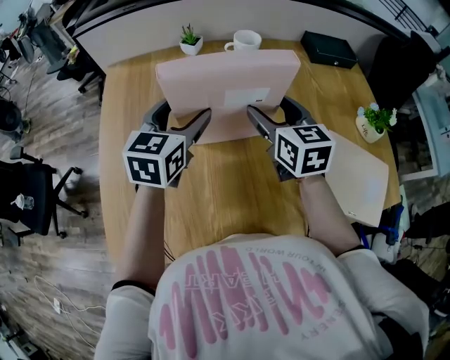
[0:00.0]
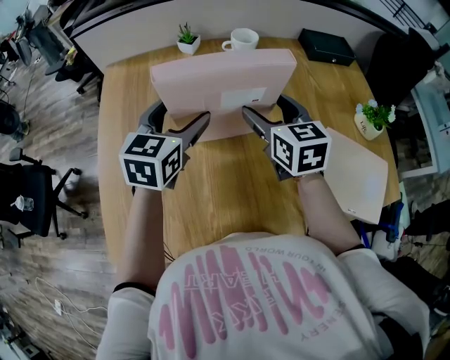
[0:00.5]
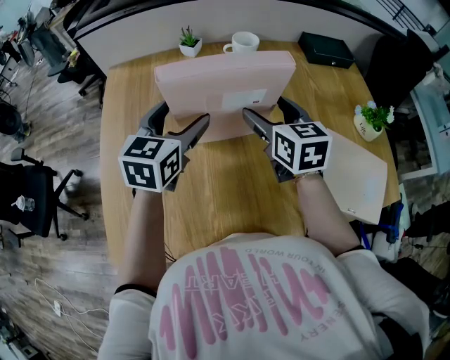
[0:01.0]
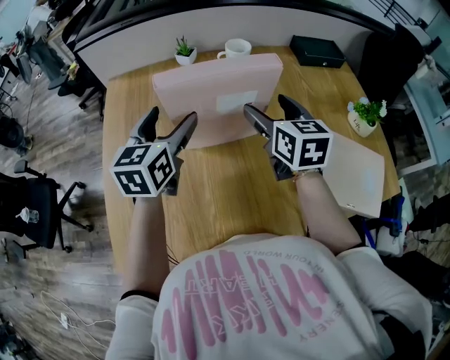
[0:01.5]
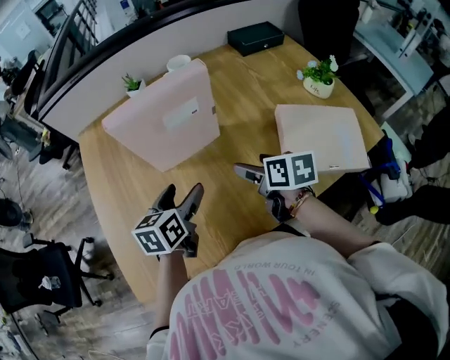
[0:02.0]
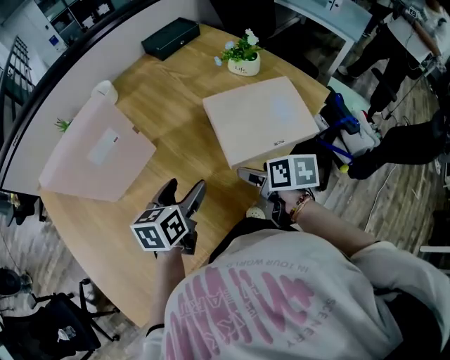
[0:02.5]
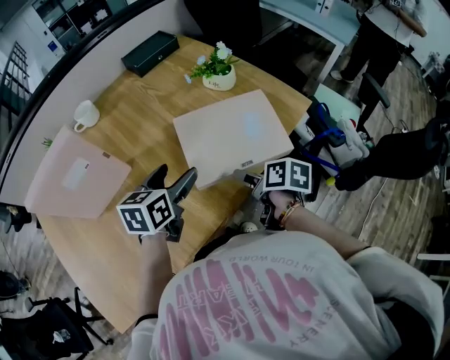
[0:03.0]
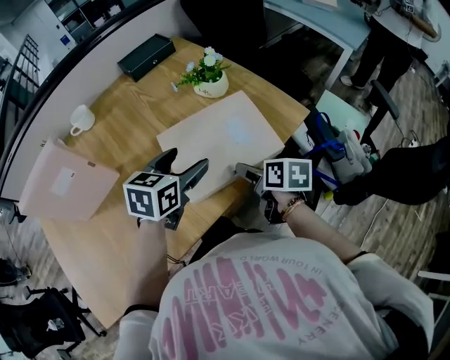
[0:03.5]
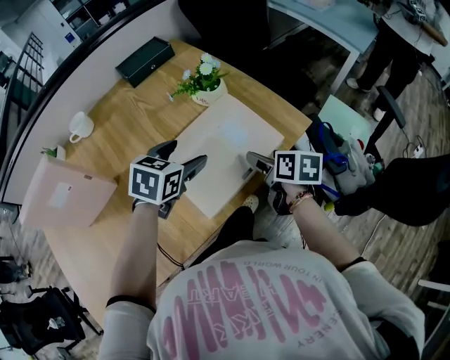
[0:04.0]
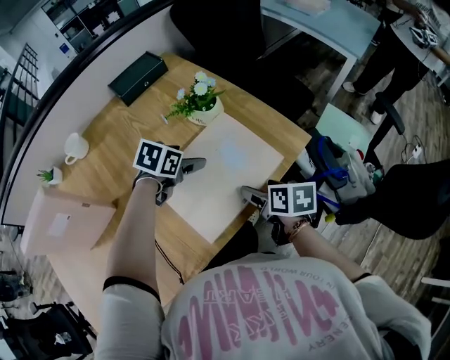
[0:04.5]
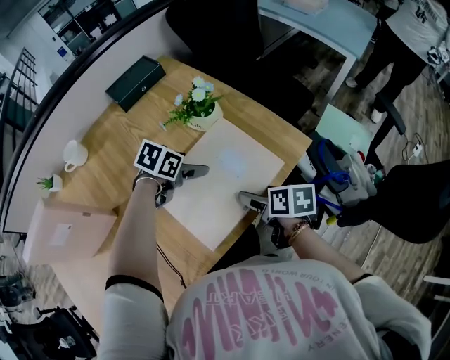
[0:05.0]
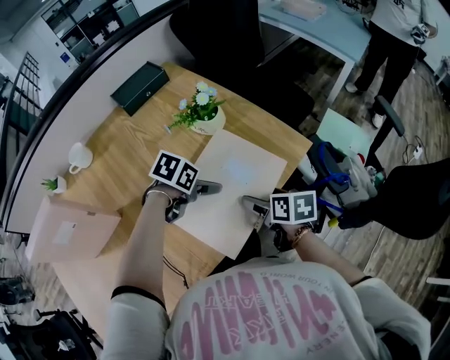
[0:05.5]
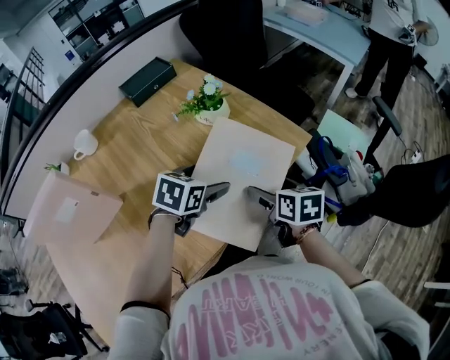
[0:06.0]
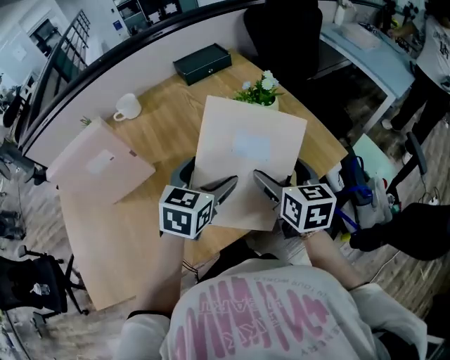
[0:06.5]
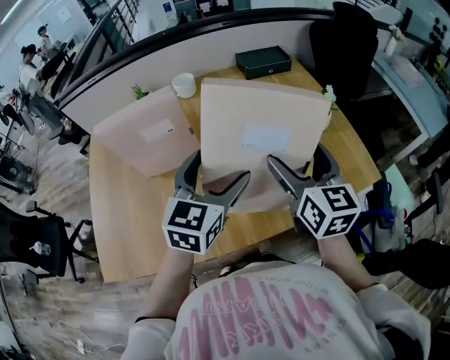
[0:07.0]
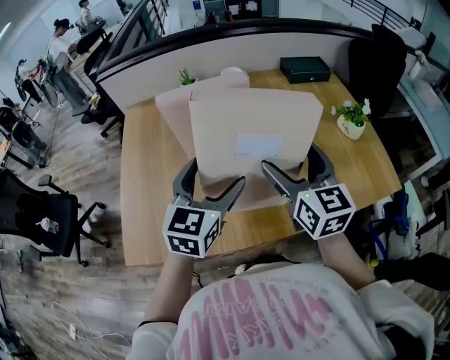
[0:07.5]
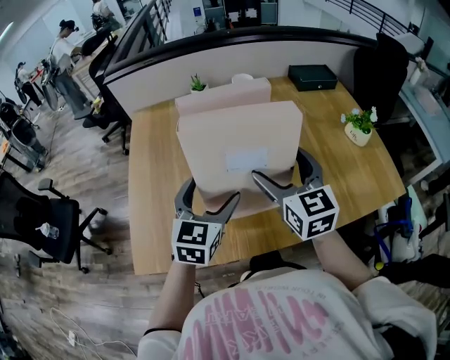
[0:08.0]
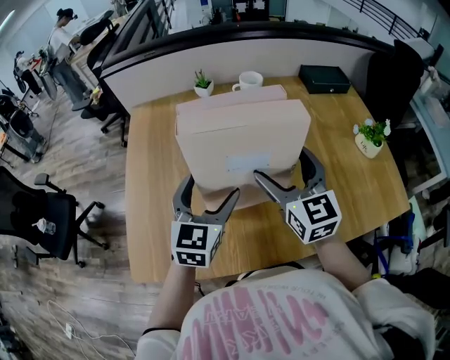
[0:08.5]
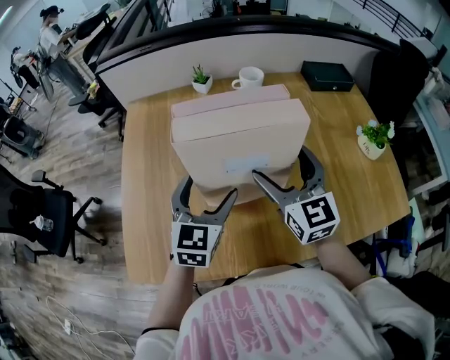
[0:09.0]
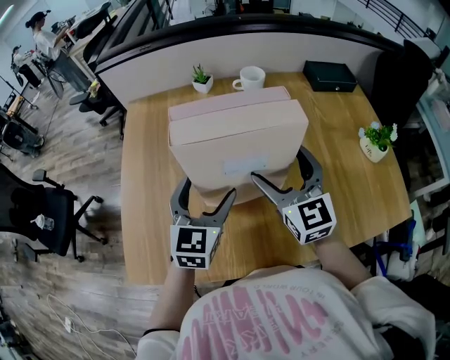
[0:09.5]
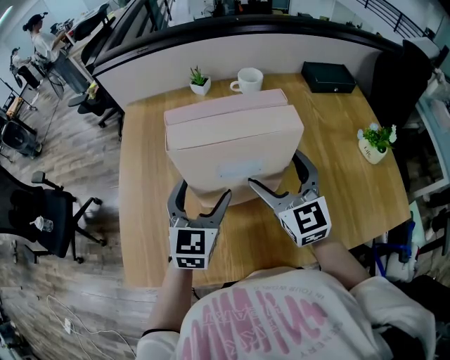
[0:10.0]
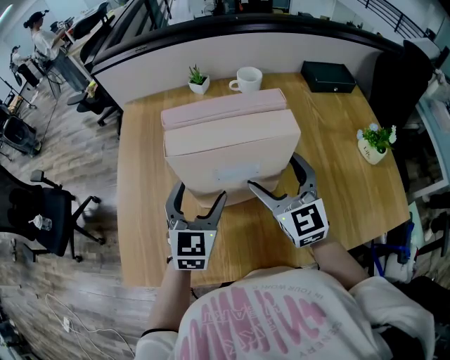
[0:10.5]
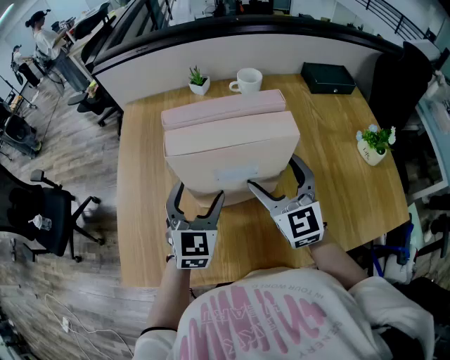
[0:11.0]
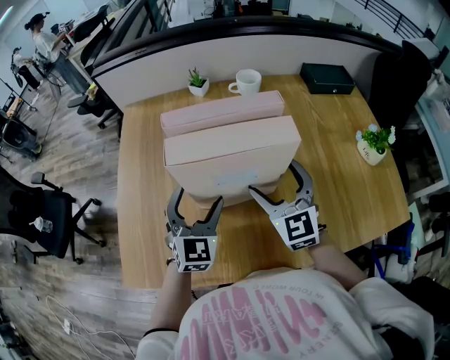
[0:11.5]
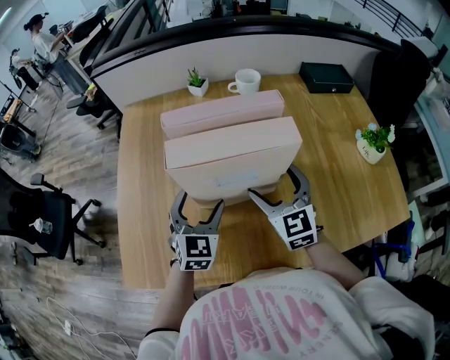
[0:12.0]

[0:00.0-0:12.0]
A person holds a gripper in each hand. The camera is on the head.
0:00.0 to 0:02.0: The left gripper moves backward and downward, approximately 15 cm, and swivels approximately 20 degrees. The right gripper goes approximately 20 cm backward, downward and to the right, and swivels about 40 degrees.
0:02.0 to 0:04.0: The pair of grippers is taken roughly 40 cm. The right gripper turns by approximately 30 degrees; the left gripper swivels approximately 50 degrees.
0:04.0 to 0:06.0: The left gripper travels forward and back again, roughly 10 cm each way.
0:06.0 to 0:08.0: The two grippers travel together, some 50 cm. The right gripper swivels approximately 60 degrees; the left gripper rotates approximately 60 degrees.
0:08.0 to 0:10.0: The two grippers go about 10 cm forward.
0:10.0 to 0:12.0: Both grippers move downward, roughly 5 cm.

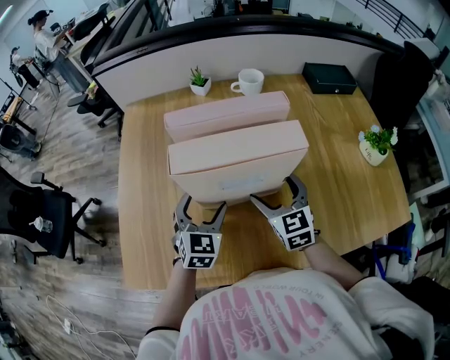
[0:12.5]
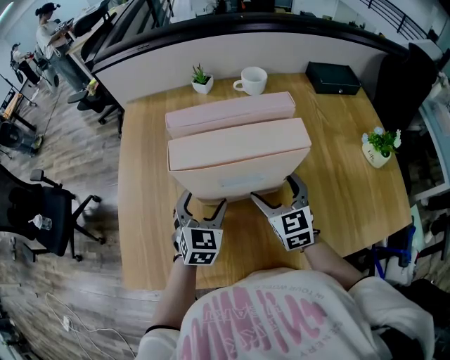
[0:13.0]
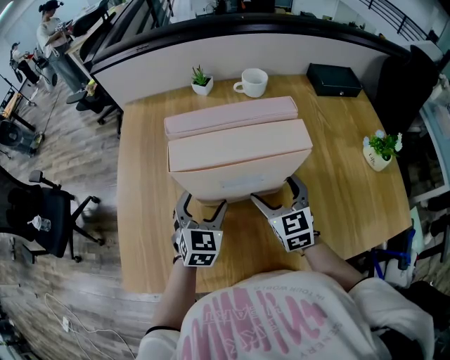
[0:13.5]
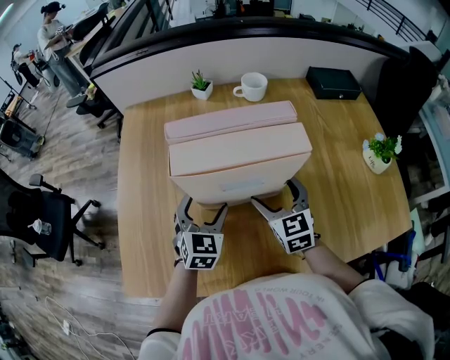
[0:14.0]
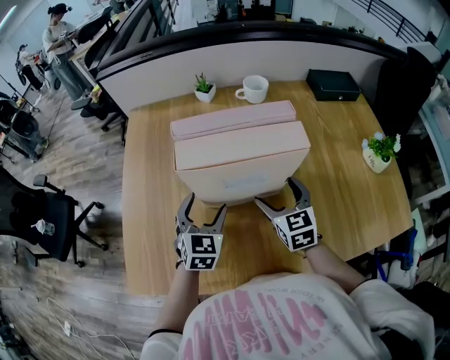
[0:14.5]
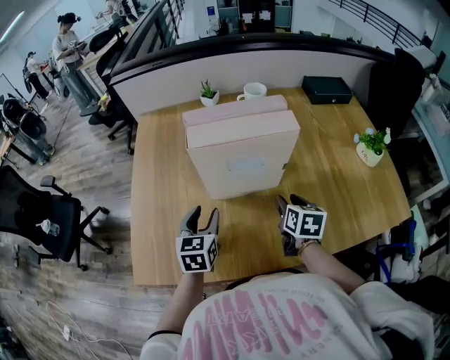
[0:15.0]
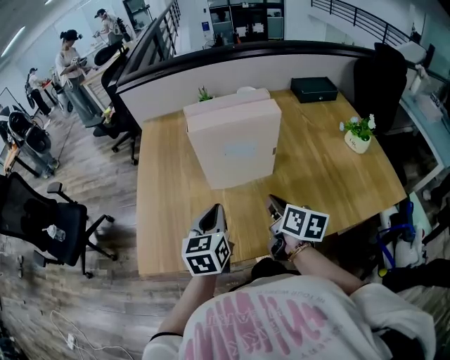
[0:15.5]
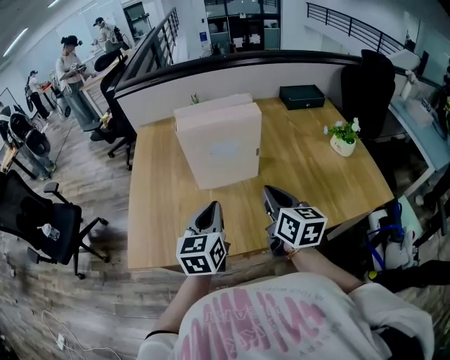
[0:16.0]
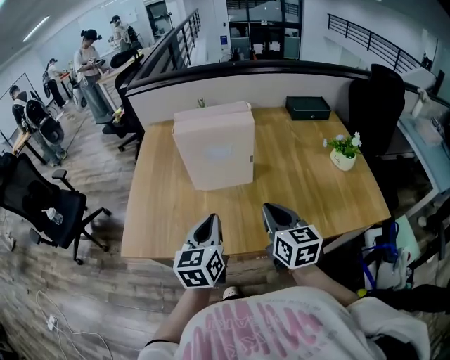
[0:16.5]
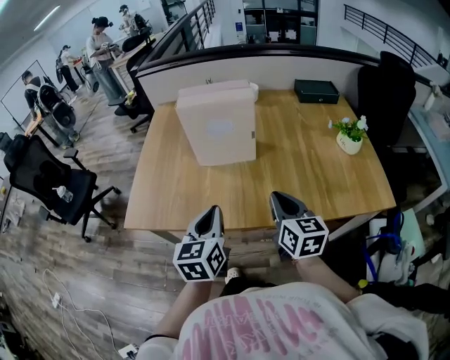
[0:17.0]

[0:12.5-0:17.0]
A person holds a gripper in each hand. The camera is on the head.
0:12.5 to 0:14.5: The grippers make only small movements.
0:14.5 to 0:17.0: The grippers both shift backward and upward by approximately 30 cm. The left gripper turns by about 30 degrees, and closes. The right gripper changes its angle by some 20 degrees, and closes its fingers.

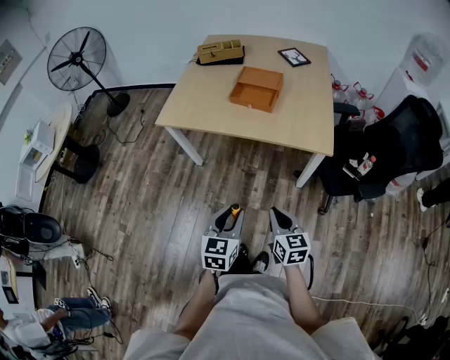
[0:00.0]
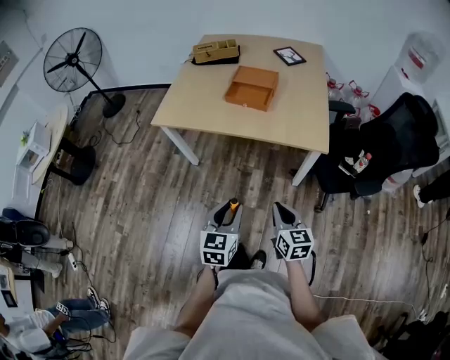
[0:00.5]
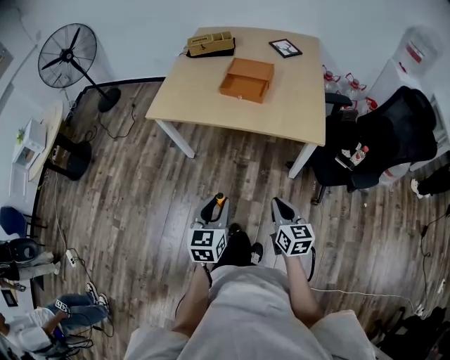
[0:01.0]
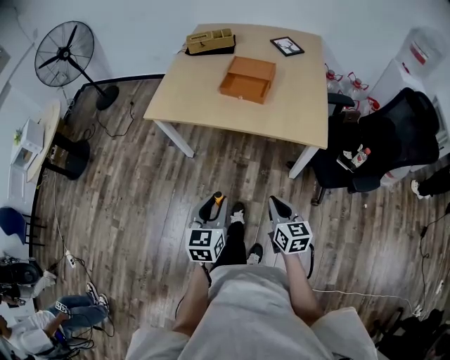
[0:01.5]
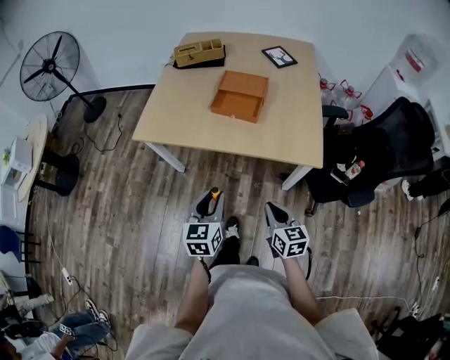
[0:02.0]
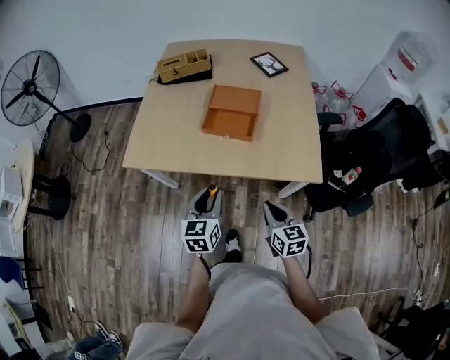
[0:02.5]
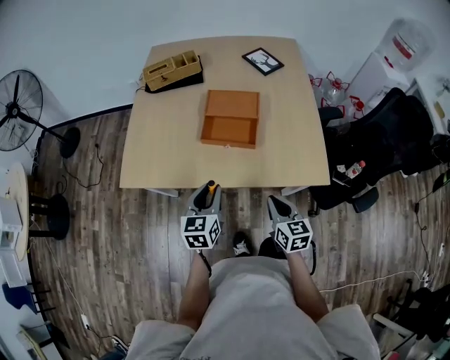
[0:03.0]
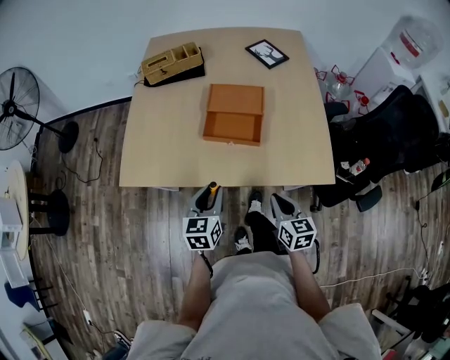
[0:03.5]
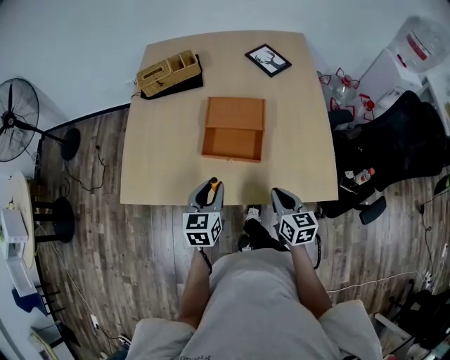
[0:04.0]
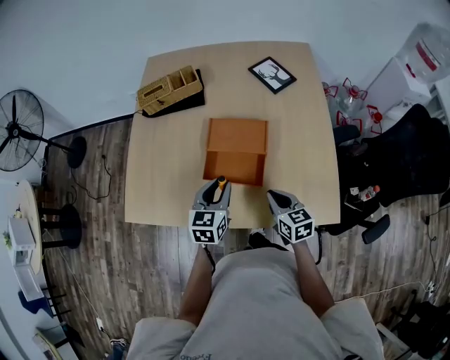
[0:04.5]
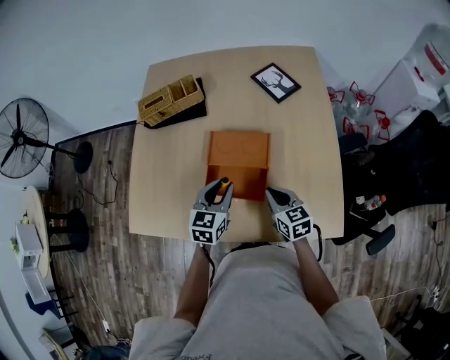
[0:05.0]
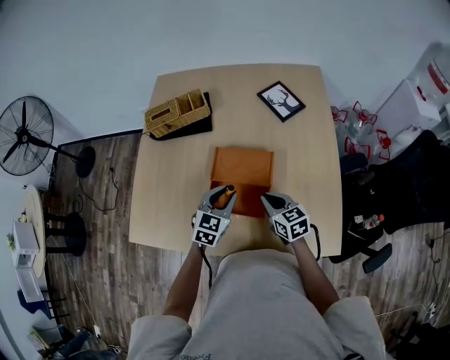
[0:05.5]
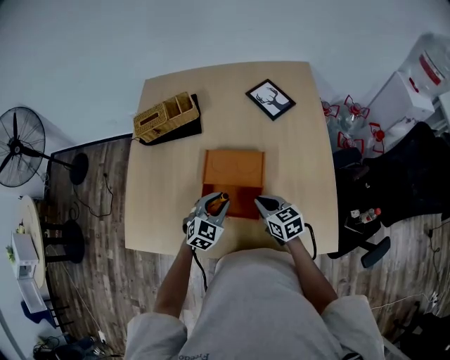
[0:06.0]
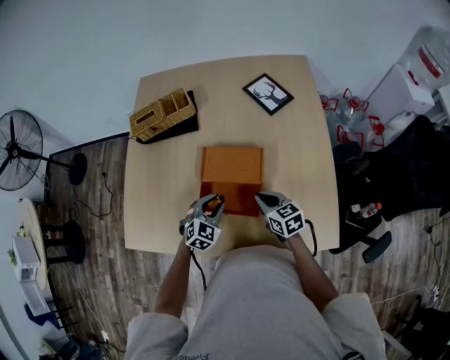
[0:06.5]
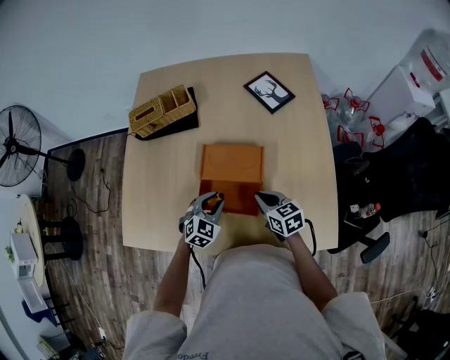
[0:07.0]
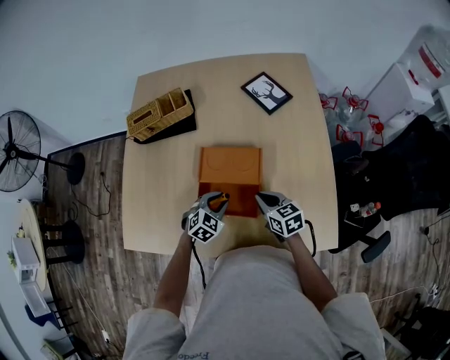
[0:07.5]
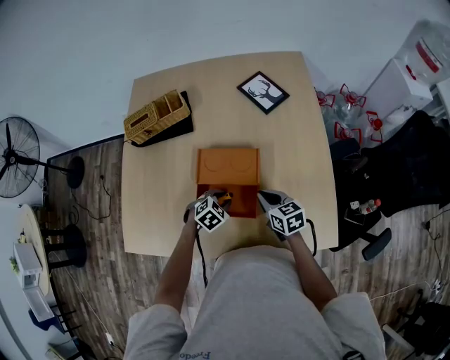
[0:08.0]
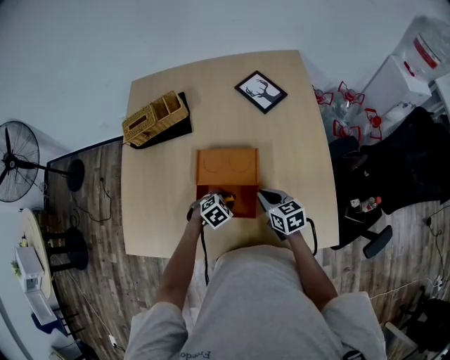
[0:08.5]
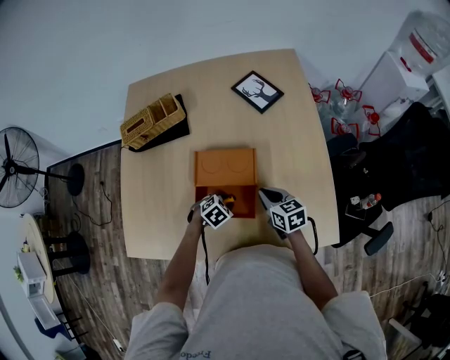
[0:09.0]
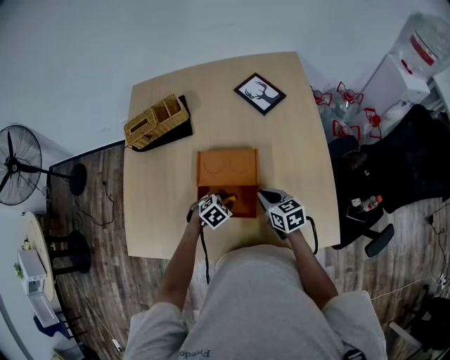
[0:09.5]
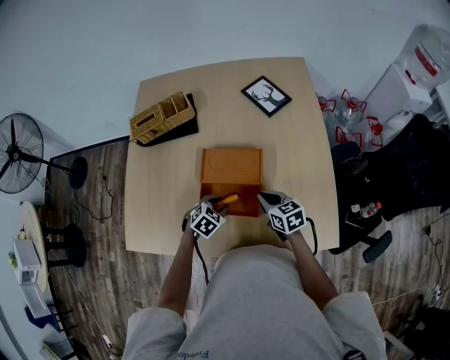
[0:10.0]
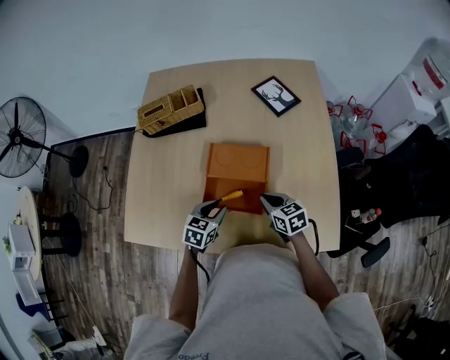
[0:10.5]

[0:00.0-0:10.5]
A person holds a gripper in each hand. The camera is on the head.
0:00.0 to 0:02.0: Both grippers travel together forward, approximately 15 cm.
0:02.0 to 0:04.0: Both grippers travel together forward, about 30 cm.
0:04.0 to 0:06.5: The left gripper shifts approximately 20 cm forward and downward, and twists some 40 degrees clockwise, seen from behind. Meanwhile the right gripper is displaced forward by about 20 cm.
0:06.5 to 0:08.5: The left gripper heads downward, covering some 10 cm, and rotates about 30 degrees.
0:08.5 to 0:10.5: The left gripper travels upward and to the left by approximately 10 cm, and turns by approximately 40 degrees.
